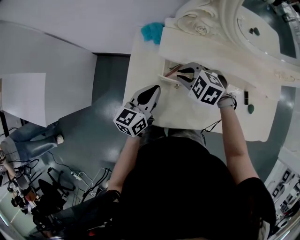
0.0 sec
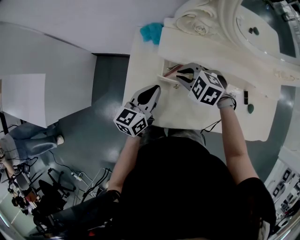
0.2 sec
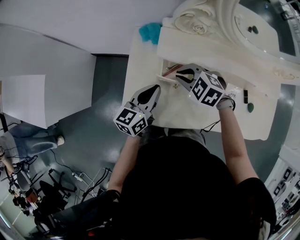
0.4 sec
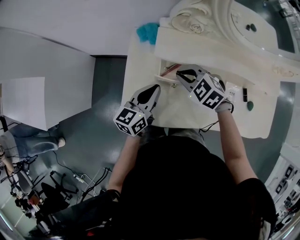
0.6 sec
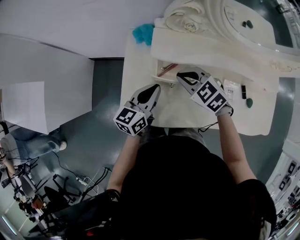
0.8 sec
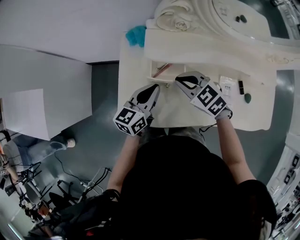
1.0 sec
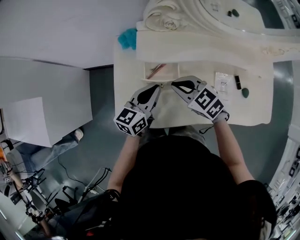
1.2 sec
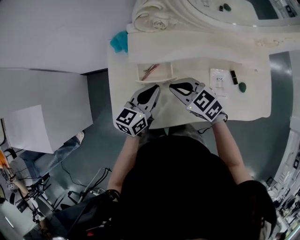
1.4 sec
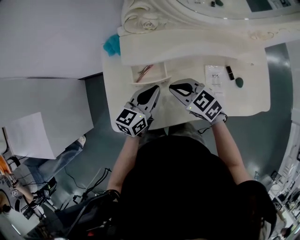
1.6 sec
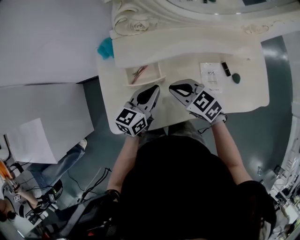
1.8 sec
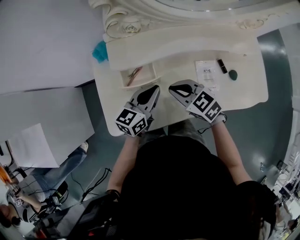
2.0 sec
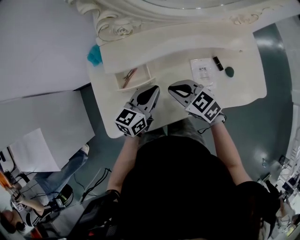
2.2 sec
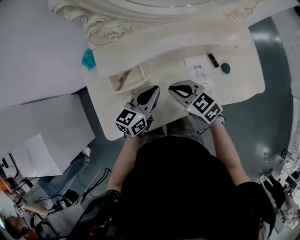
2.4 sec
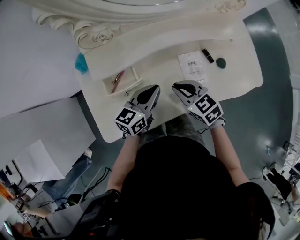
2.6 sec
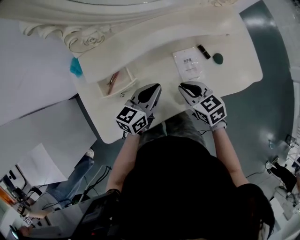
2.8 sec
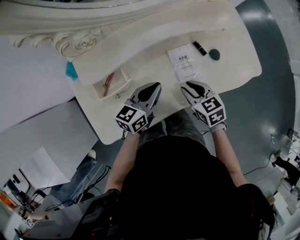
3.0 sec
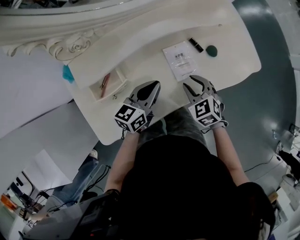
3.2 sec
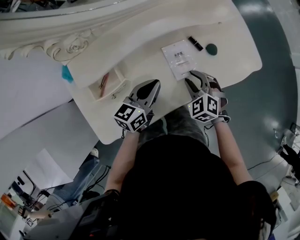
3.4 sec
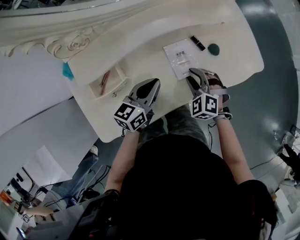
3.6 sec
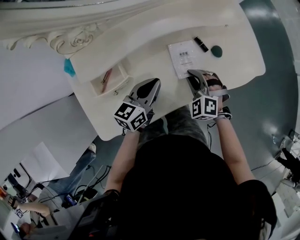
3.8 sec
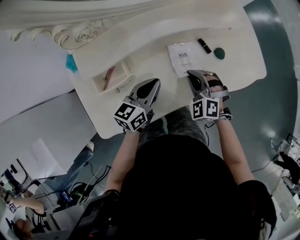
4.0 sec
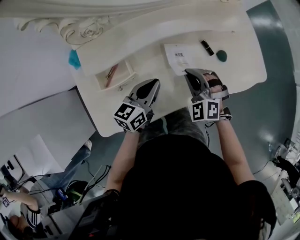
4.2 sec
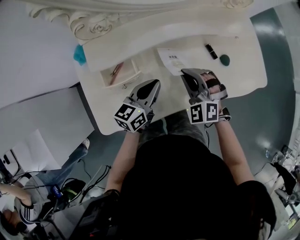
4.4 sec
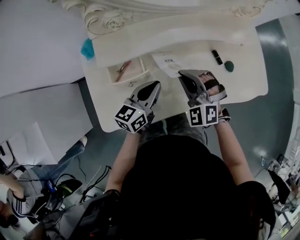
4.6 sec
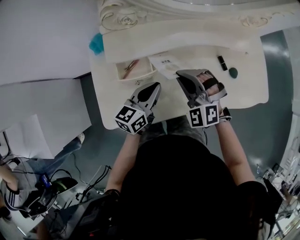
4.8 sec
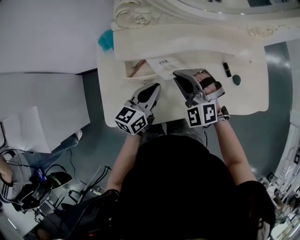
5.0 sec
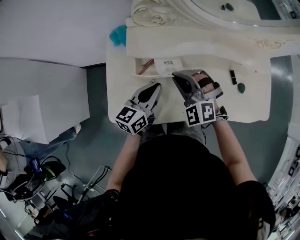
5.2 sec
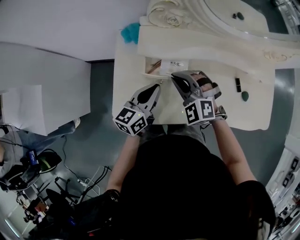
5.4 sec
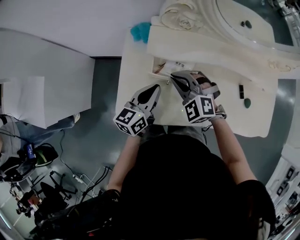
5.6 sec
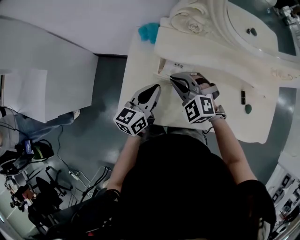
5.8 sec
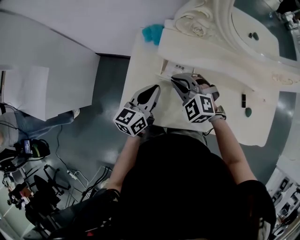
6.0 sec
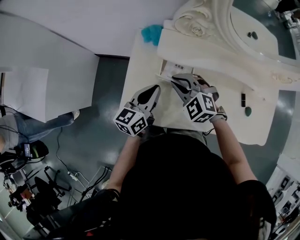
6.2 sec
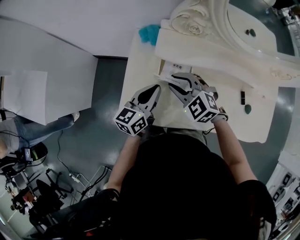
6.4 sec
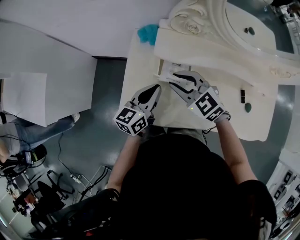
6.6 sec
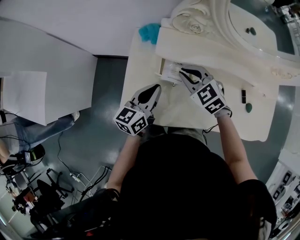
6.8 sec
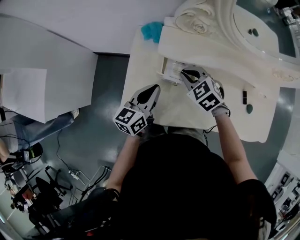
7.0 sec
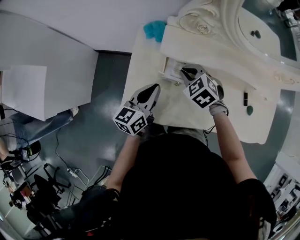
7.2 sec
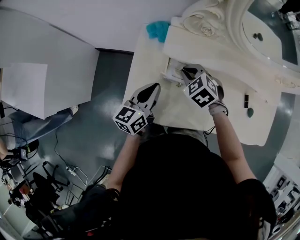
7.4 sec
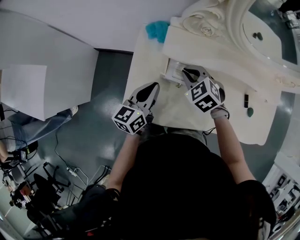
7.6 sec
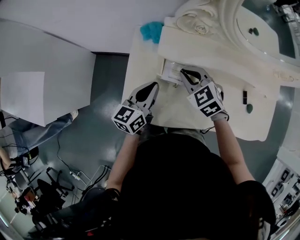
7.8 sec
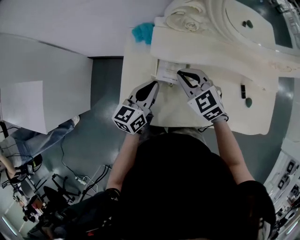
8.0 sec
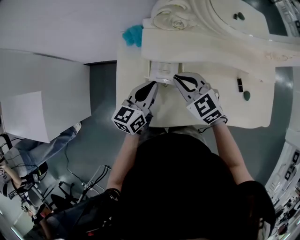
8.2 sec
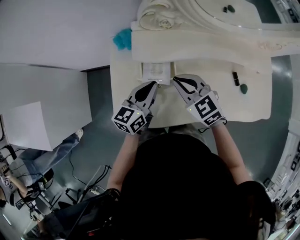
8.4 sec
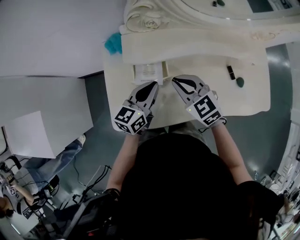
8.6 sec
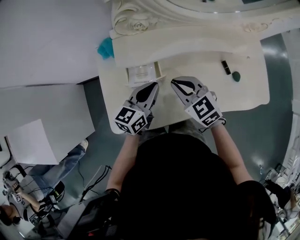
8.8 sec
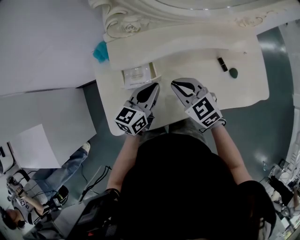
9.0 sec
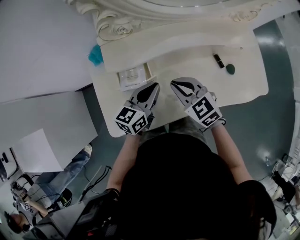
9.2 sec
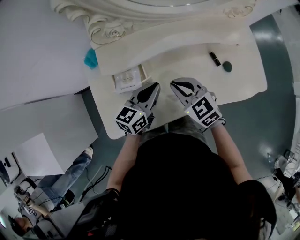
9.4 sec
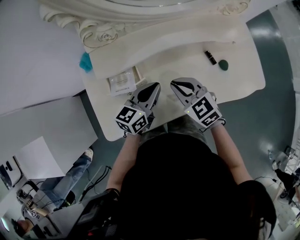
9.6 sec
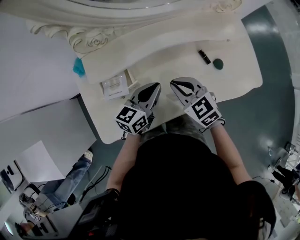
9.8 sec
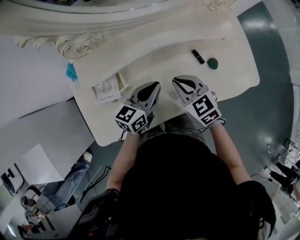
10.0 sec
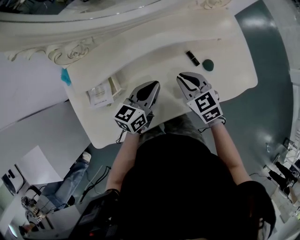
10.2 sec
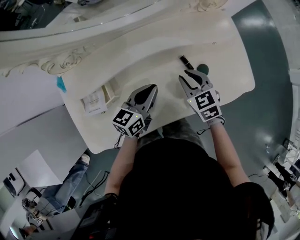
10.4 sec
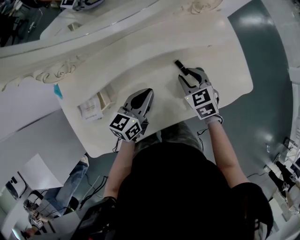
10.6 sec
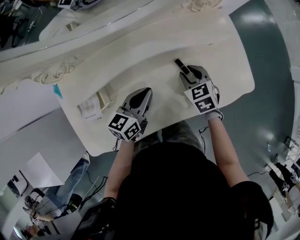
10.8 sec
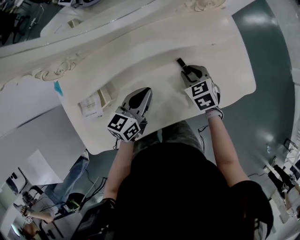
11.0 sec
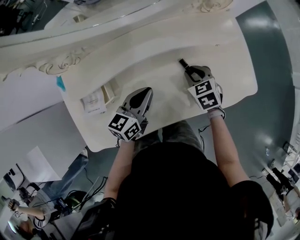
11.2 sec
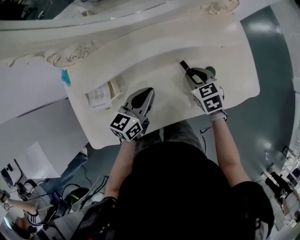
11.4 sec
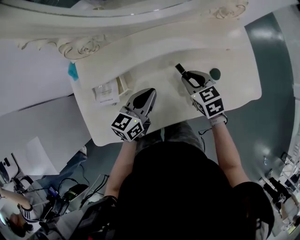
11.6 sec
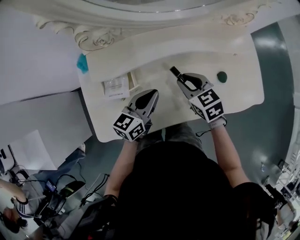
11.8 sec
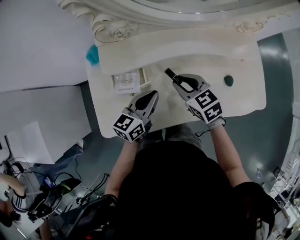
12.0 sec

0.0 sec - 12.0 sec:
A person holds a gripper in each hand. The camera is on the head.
0.0 sec - 1.6 sec: The left gripper heads to the right, covering about 10 cm; the right gripper goes roughly 10 cm backward and to the right, and turns by about 40 degrees.
1.6 sec - 3.0 sec: The right gripper moves approximately 20 cm, rotates roughly 40 degrees, and opens up, while the left gripper moves approximately 15 cm.
3.0 sec - 4.4 sec: The right gripper moves to the left, some 5 cm, rolls counterclockwise, seen from behind, by some 60 degrees, and closes its fingers.
4.4 sec - 6.0 sec: The left gripper changes place by about 20 cm, and rotates some 30 degrees. The right gripper changes place by approximately 25 cm, and turns by approximately 40 degrees.
6.0 sec - 7.6 sec: The right gripper ends up some 5 cm from where it was, changes its angle by about 30 degrees, and opens, then closes again.
7.6 sec - 9.0 sec: The right gripper shifts approximately 15 cm to the right and backward, and turns by approximately 30 degrees. The left gripper is displaced to the right by roughly 15 cm, and changes its angle by about 30 degrees.
9.0 sec - 10.4 sec: The two grippers go roughly 20 cm to the right. The right gripper changes its angle by about 30 degrees.
10.4 sec - 12.0 sec: The left gripper is displaced to the left and backward by approximately 15 cm; the right gripper is displaced to the left by about 15 cm.

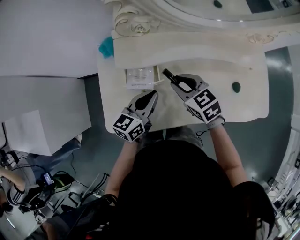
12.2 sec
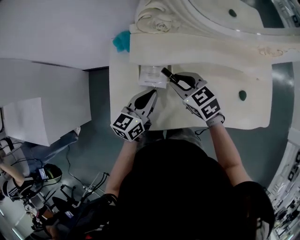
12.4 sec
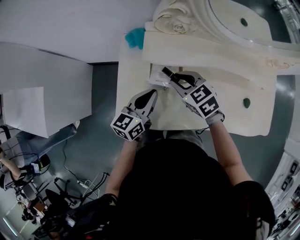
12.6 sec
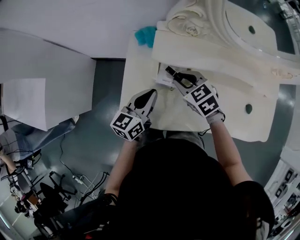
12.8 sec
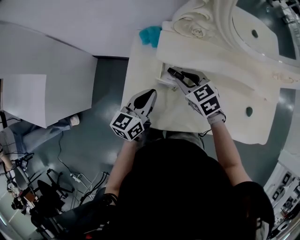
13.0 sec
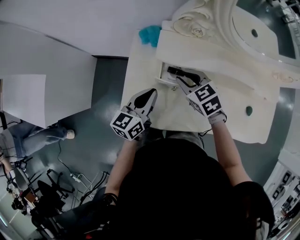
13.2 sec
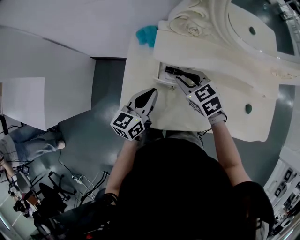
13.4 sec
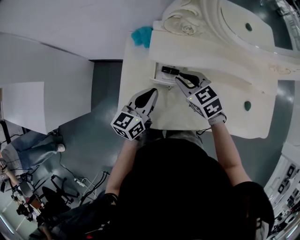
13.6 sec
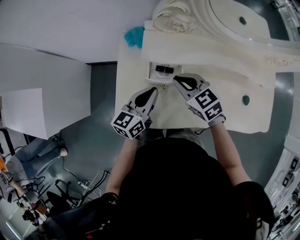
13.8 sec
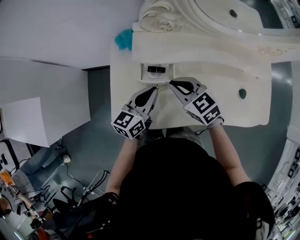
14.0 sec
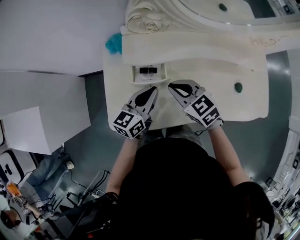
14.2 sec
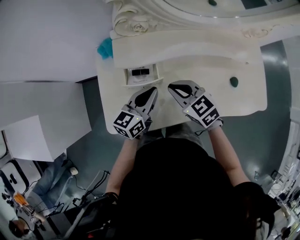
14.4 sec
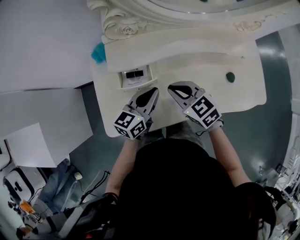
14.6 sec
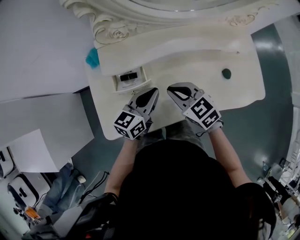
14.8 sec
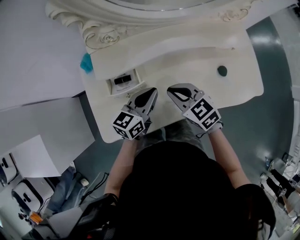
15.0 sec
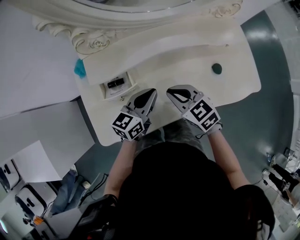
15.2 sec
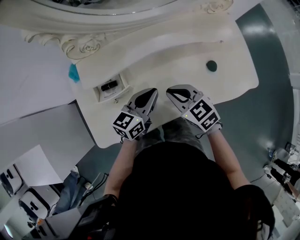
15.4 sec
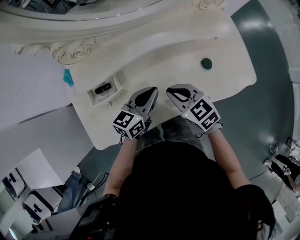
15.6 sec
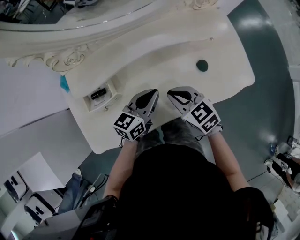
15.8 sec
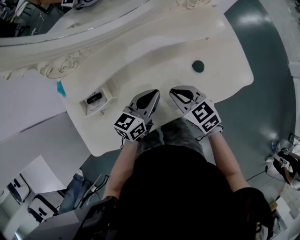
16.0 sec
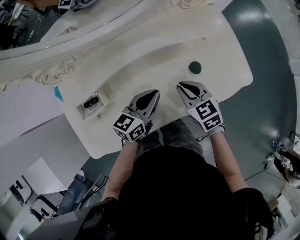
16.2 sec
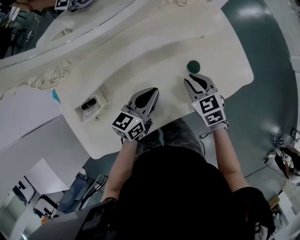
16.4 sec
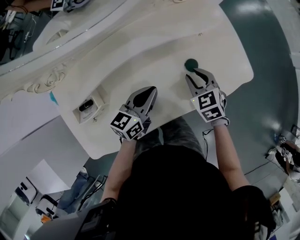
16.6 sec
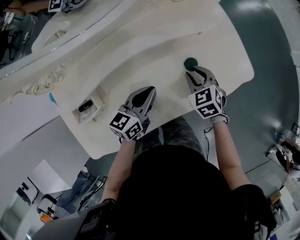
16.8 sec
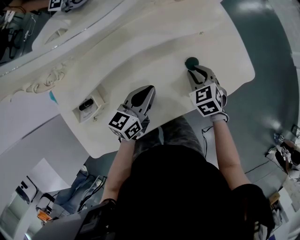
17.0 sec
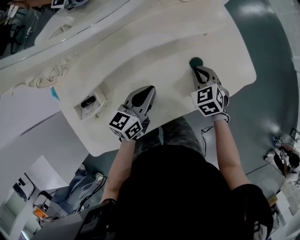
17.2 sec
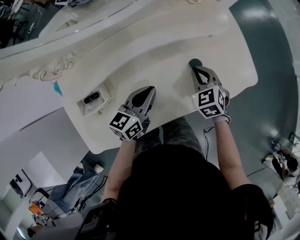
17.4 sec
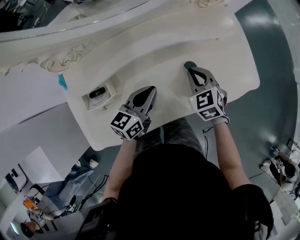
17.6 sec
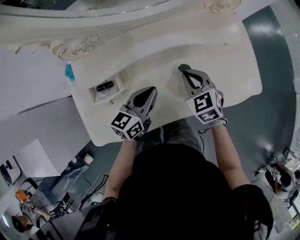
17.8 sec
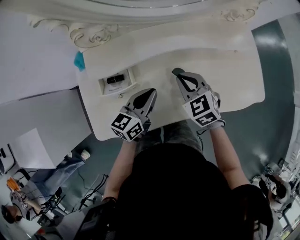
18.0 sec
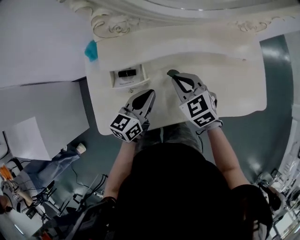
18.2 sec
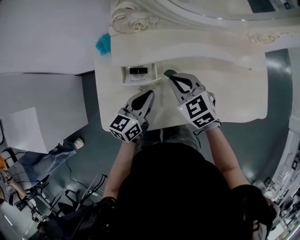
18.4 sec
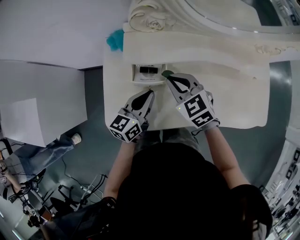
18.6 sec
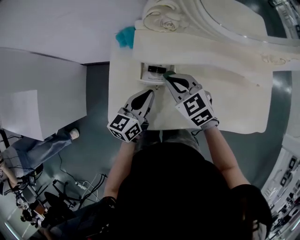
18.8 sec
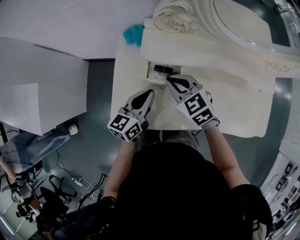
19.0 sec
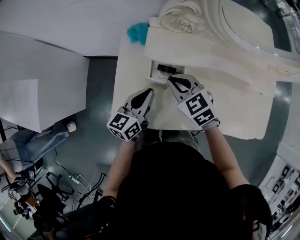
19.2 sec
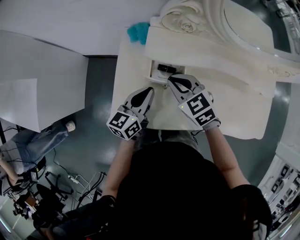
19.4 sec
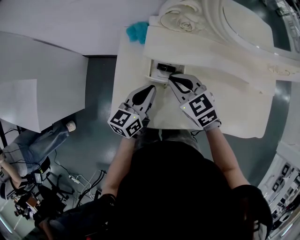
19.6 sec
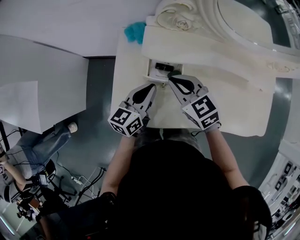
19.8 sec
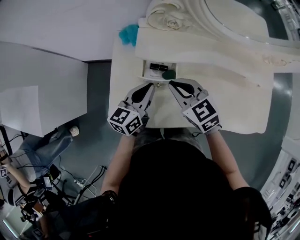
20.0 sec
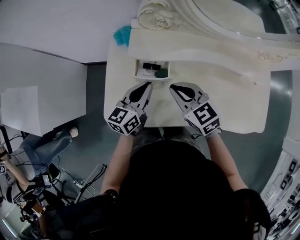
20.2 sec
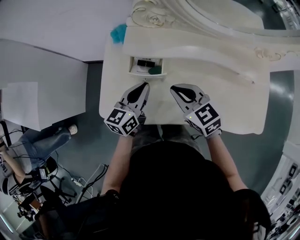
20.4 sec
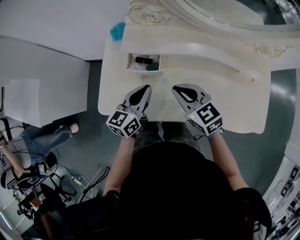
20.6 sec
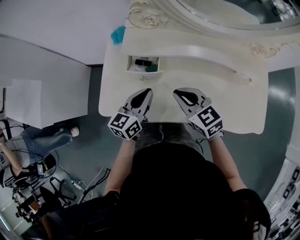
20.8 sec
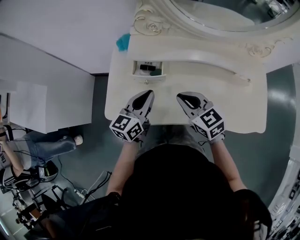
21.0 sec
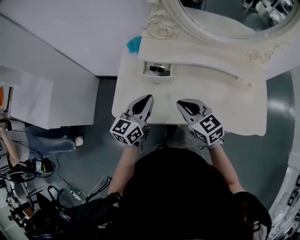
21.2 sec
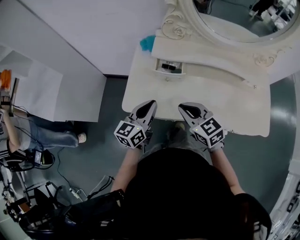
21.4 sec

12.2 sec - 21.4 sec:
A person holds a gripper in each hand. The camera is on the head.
12.2 sec - 13.8 sec: Both grippers move to the left, roughly 10 cm.
13.8 sec - 15.2 sec: The left gripper is displaced to the right by approximately 20 cm, and turns by approximately 20 degrees; the right gripper goes about 15 cm to the right and backward.
15.2 sec - 16.8 sec: The right gripper ends up approximately 25 cm from where it was, and turns by approximately 30 degrees; the left gripper ends up approximately 15 cm from where it was.
16.8 sec - 18.4 sec: The right gripper shifts by roughly 35 cm, and swivels roughly 40 degrees, while the left gripper ends up some 25 cm from where it was, and turns by about 30 degrees.
18.4 sec - 19.8 sec: The two grippers go roughly 10 cm to the left.
19.8 sec - 21.4 sec: Both grippers travel together backward, some 15 cm.

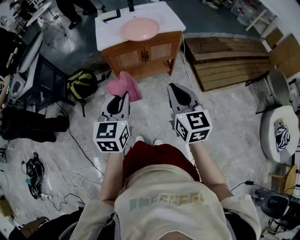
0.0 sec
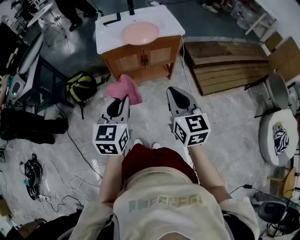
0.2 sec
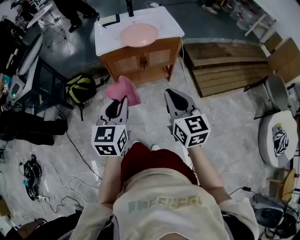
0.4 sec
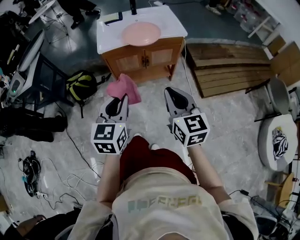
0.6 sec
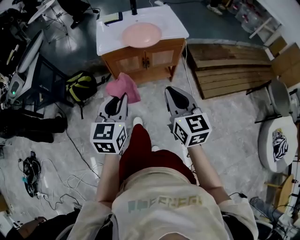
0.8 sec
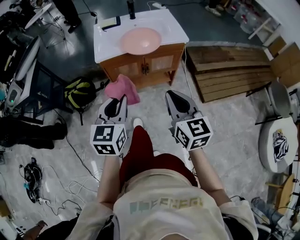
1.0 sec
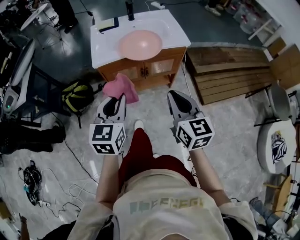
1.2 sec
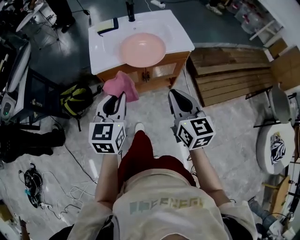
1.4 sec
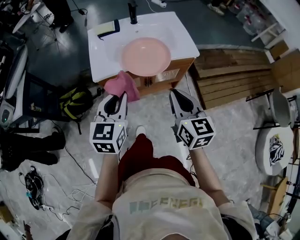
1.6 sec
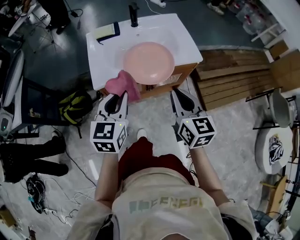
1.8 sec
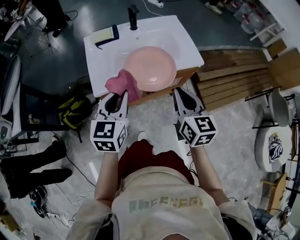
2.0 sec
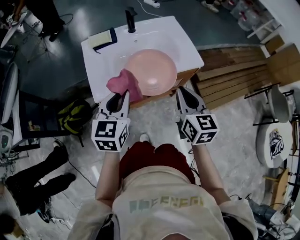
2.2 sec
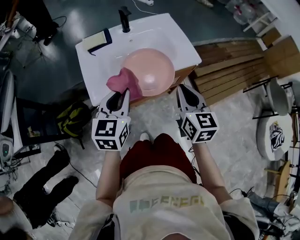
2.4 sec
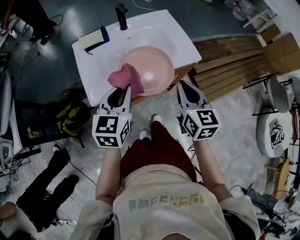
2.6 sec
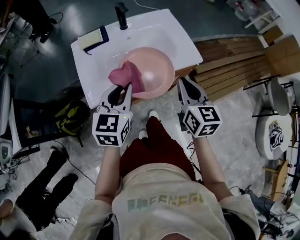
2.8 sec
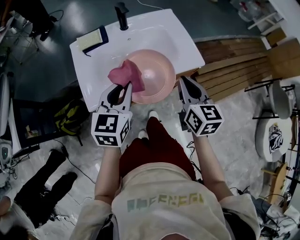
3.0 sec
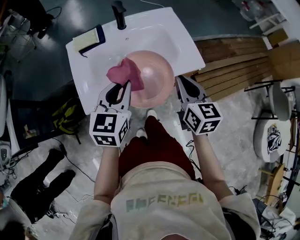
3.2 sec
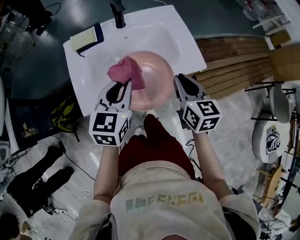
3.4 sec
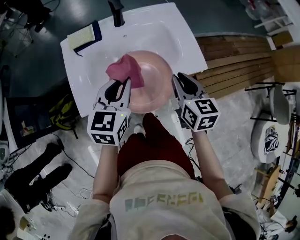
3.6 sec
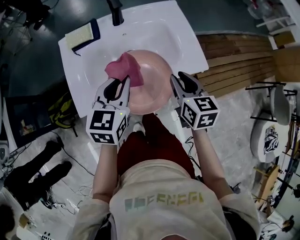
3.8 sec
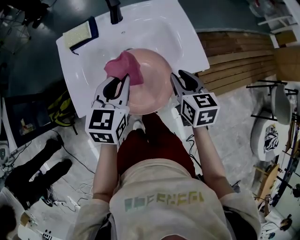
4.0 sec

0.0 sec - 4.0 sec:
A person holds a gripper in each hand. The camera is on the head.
0.0 sec - 1.4 sec: Both grippers travel together forward, approximately 20 cm.
1.4 sec - 2.6 sec: Both grippers travel together forward, approximately 20 cm.
2.6 sec - 4.0 sec: The right gripper heads forward and downward, covering approximately 15 cm, and swivels roughly 20 degrees. Meanwhile the left gripper shifts some 15 cm forward.
